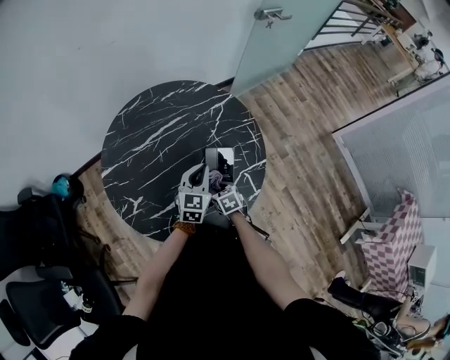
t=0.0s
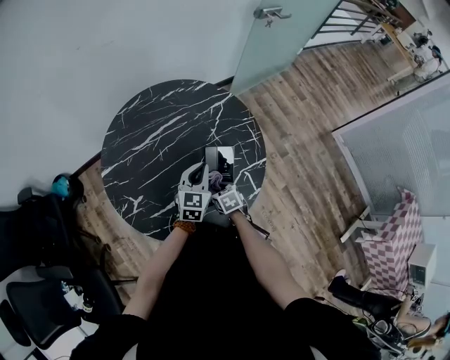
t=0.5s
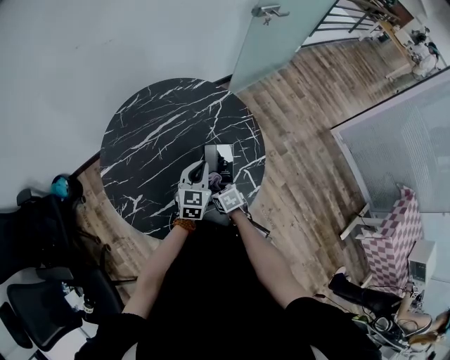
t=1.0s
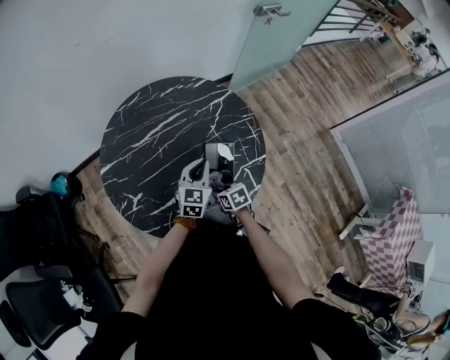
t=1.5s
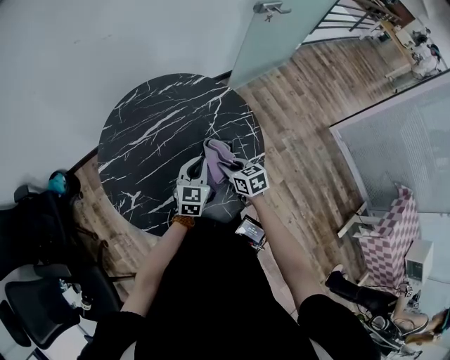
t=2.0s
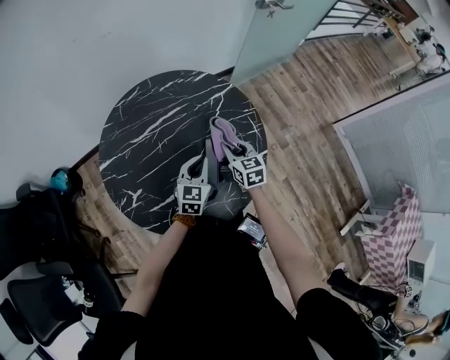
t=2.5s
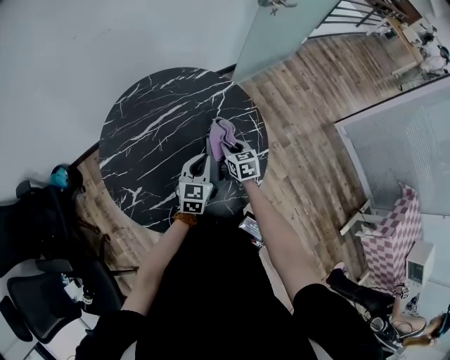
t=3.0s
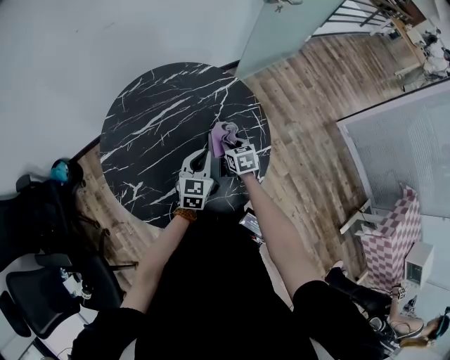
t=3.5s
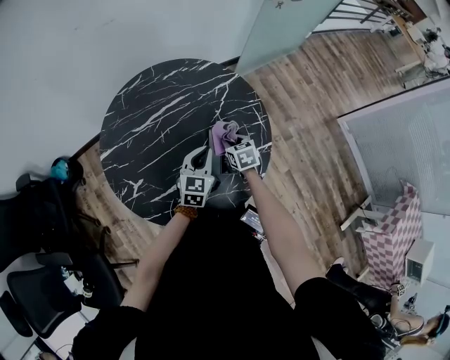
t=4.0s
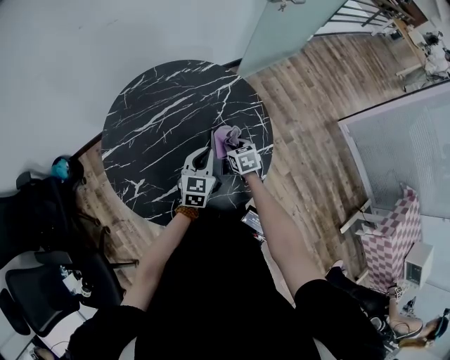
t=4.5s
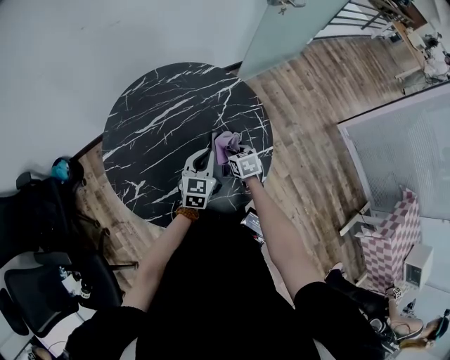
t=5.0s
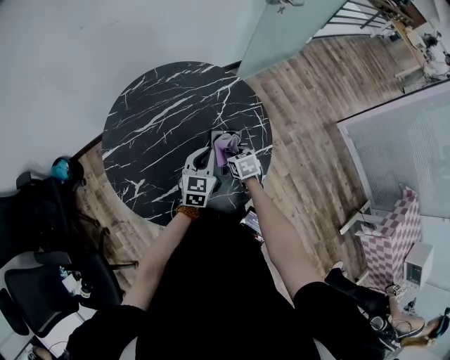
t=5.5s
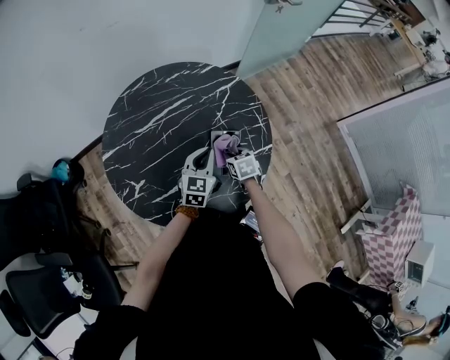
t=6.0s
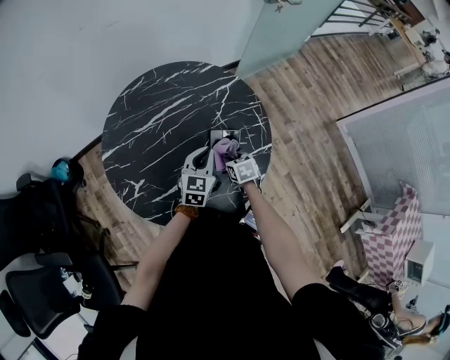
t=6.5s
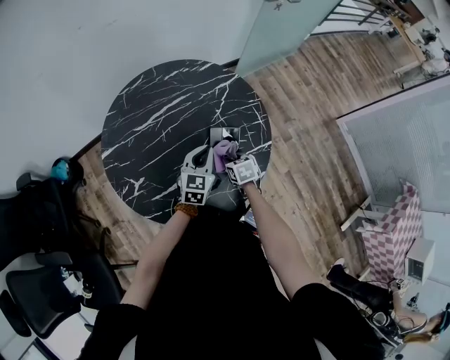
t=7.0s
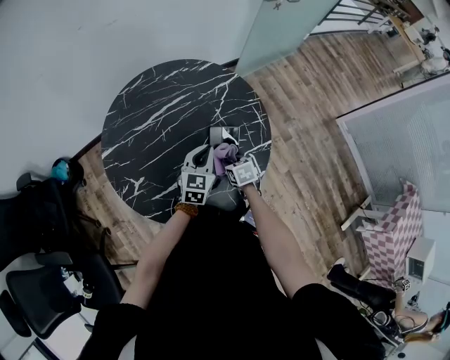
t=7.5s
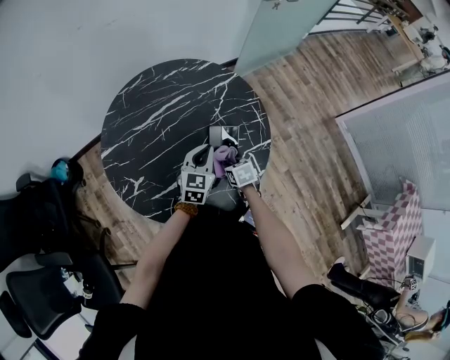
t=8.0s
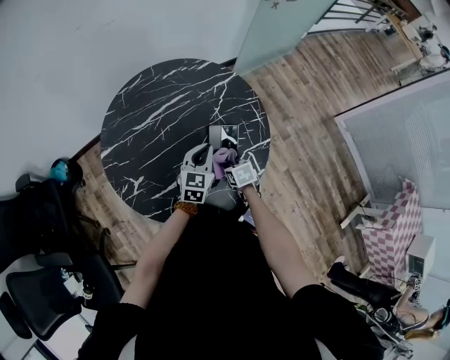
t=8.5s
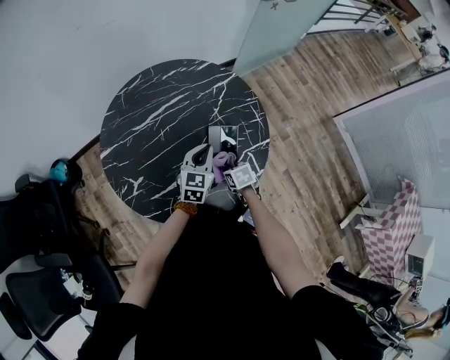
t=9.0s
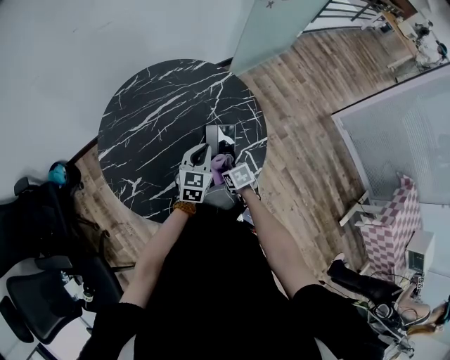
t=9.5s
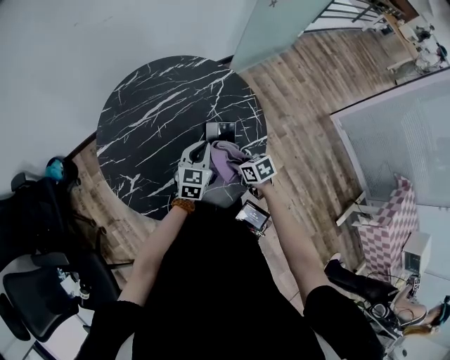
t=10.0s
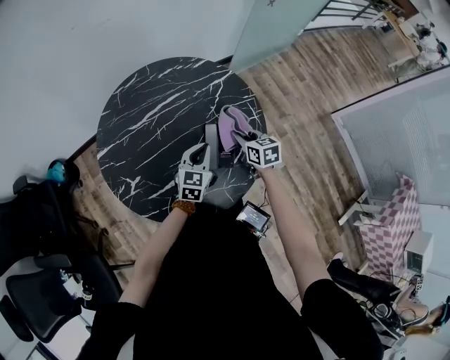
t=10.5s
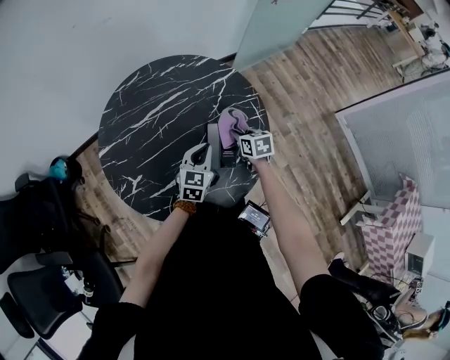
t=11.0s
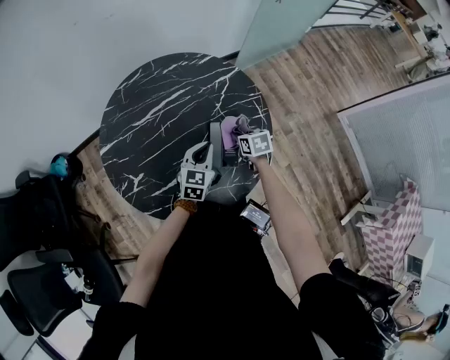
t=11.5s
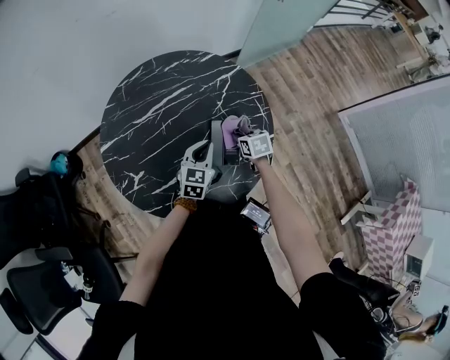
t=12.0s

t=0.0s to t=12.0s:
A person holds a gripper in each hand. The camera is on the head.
t=0.0s to t=2.0s: The right gripper is displaced upward by some 10 cm.
t=2.0s to t=4.0s: The right gripper heads downward and forward, covering about 10 cm.
t=4.0s to t=6.0s: The grippers stay close to where they were, moving slightly.
t=6.0s to t=8.0s: The right gripper travels backward by about 5 cm.
t=8.0s to t=10.0s: The right gripper moves approximately 5 cm.
t=10.0s to t=12.0s: The right gripper goes about 10 cm forward.

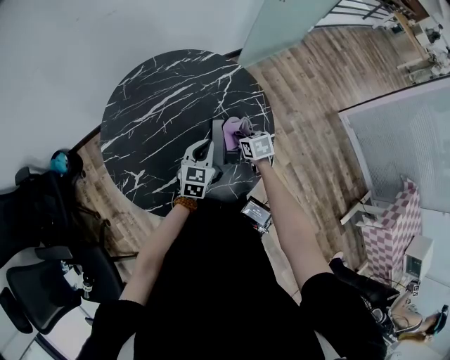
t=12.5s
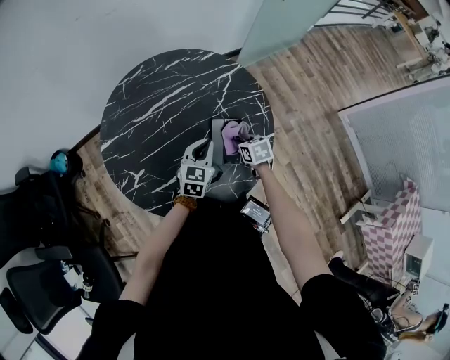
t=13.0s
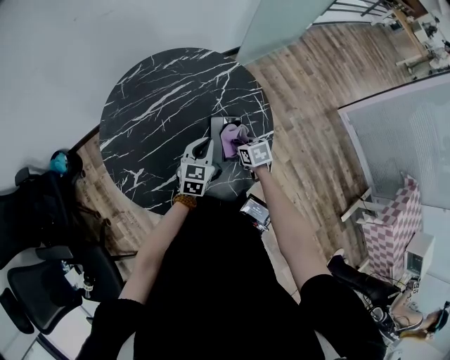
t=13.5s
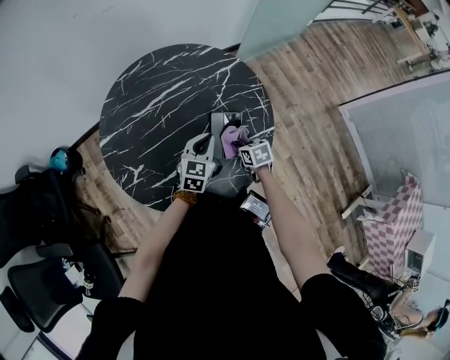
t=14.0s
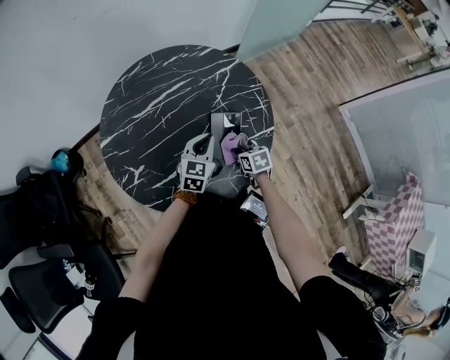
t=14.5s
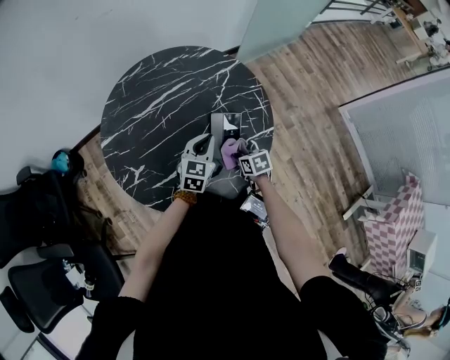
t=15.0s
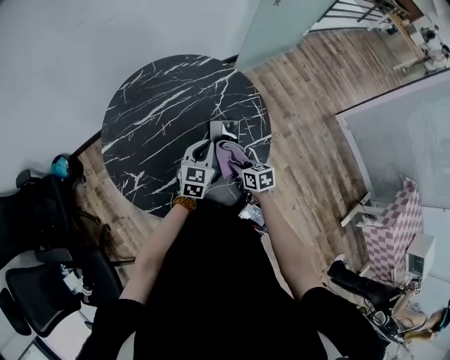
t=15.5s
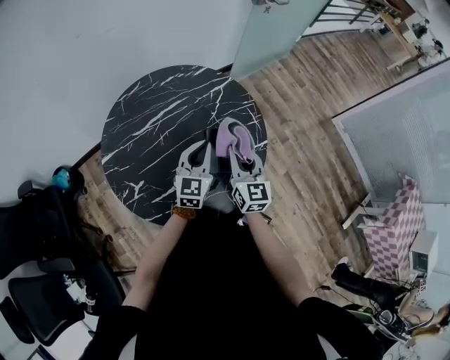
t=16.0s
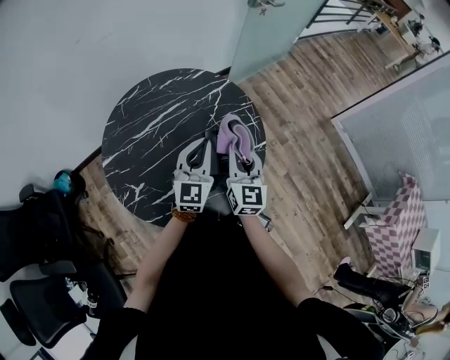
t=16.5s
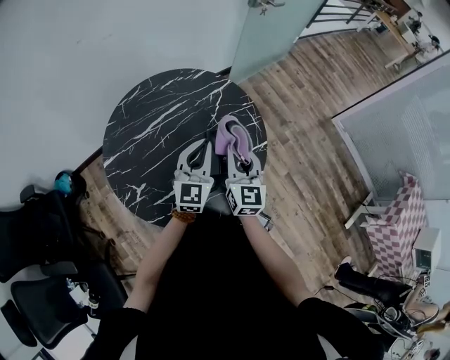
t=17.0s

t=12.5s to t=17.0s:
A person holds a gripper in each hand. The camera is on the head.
t=12.5s to t=14.5s: The right gripper travels backward by about 10 cm.
t=14.5s to t=17.0s: The right gripper heads upward, covering approximately 25 cm, and tilts its fingers some 50 degrees upward. Meanwhile the left gripper shifts roughly 15 cm upward, and turns by approximately 20 degrees.

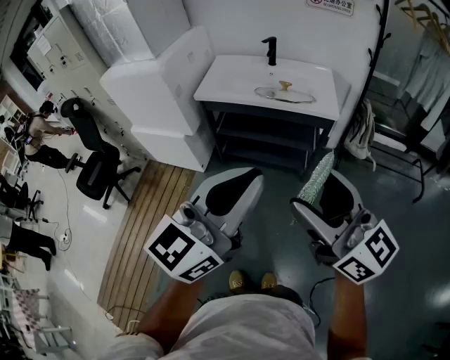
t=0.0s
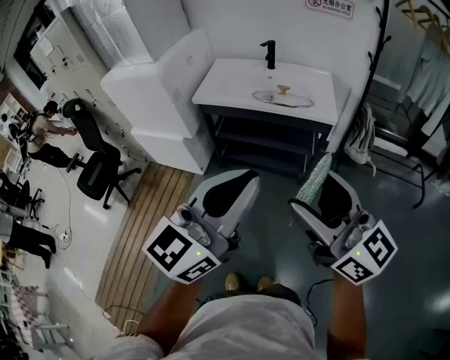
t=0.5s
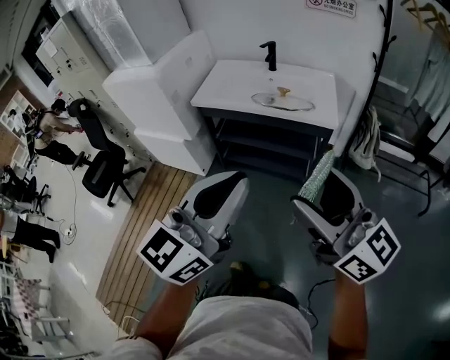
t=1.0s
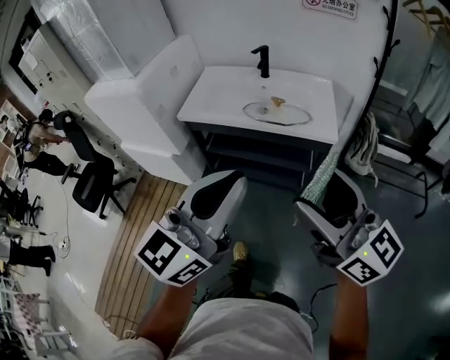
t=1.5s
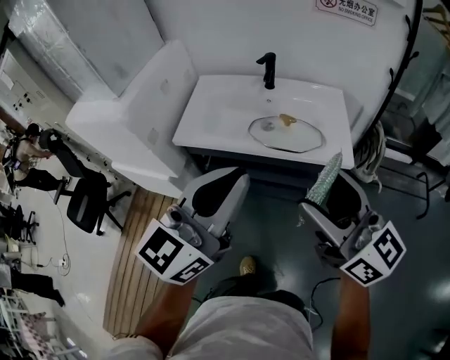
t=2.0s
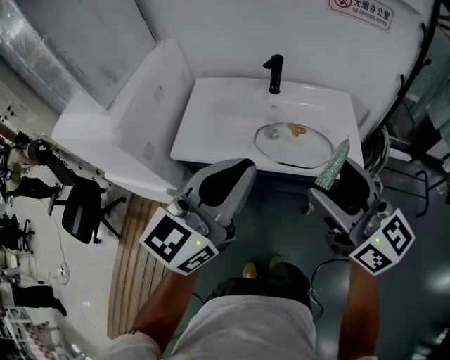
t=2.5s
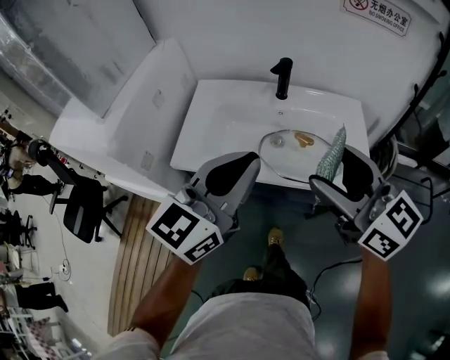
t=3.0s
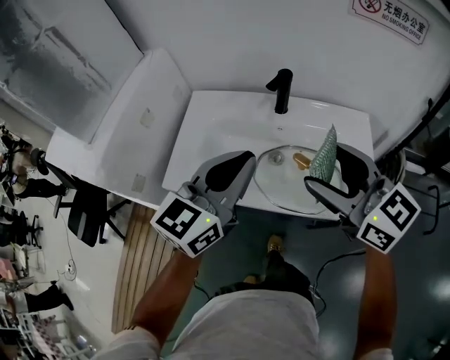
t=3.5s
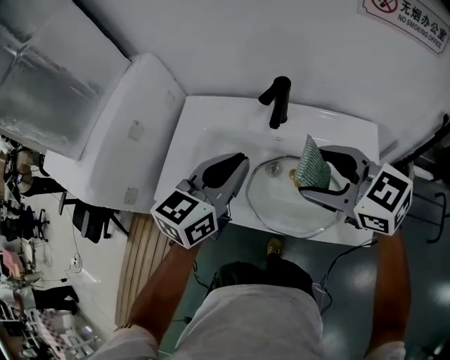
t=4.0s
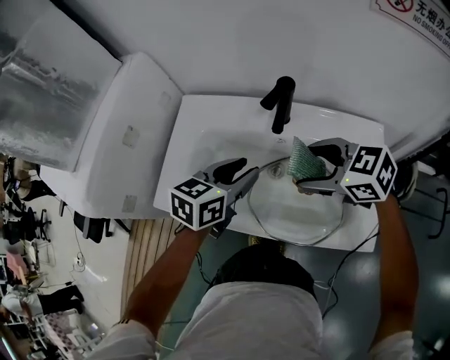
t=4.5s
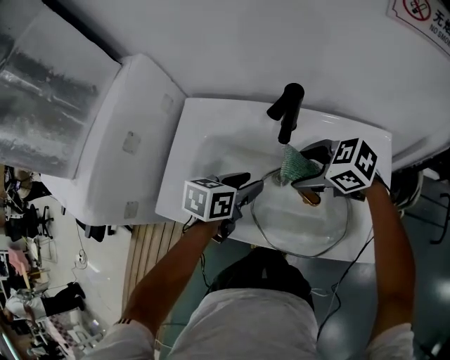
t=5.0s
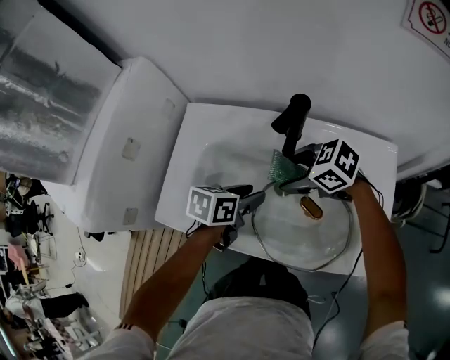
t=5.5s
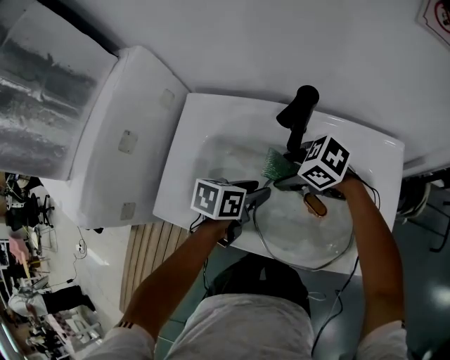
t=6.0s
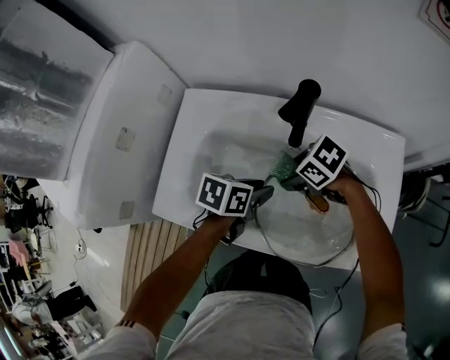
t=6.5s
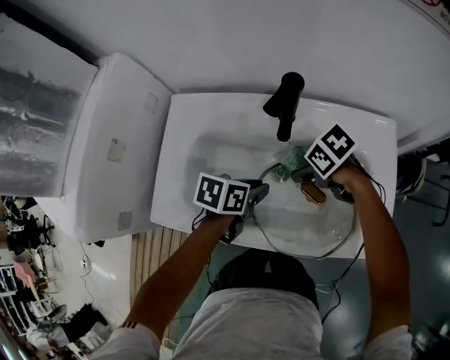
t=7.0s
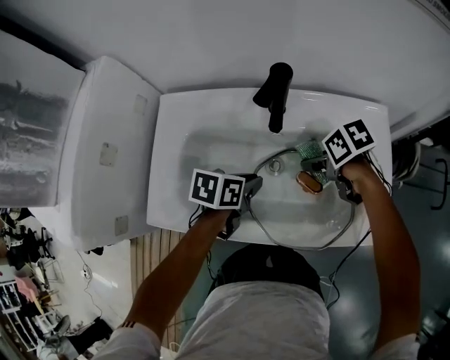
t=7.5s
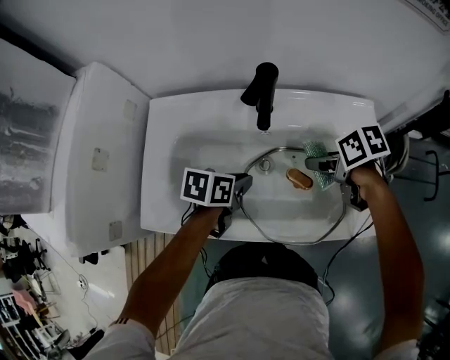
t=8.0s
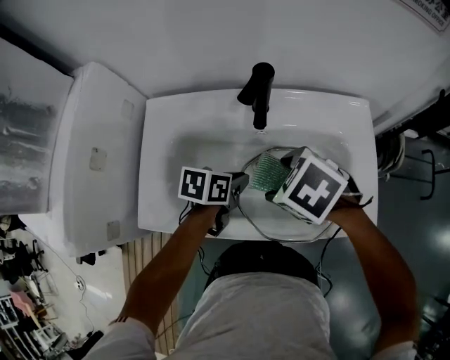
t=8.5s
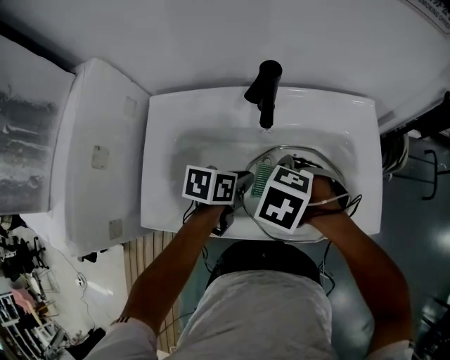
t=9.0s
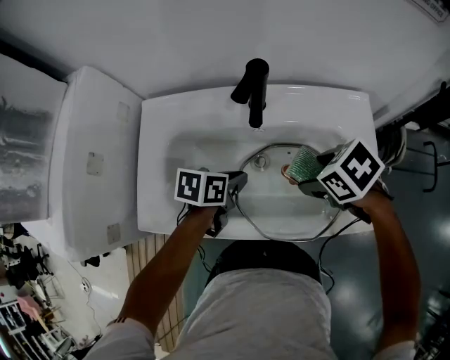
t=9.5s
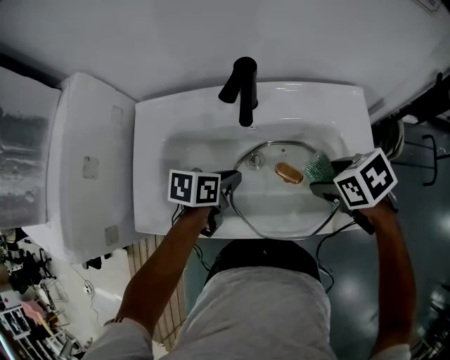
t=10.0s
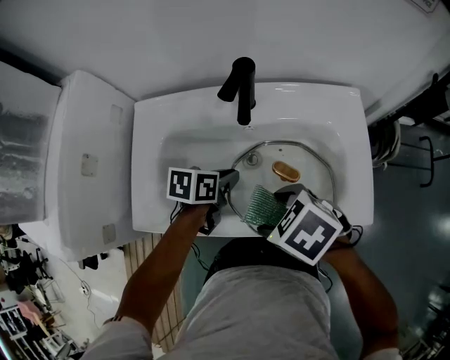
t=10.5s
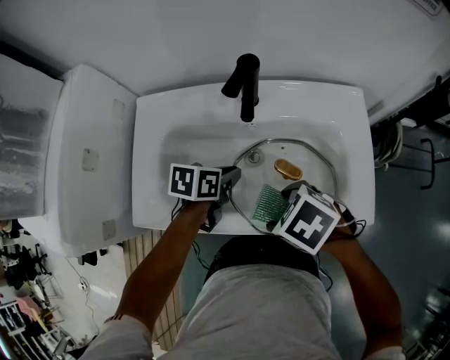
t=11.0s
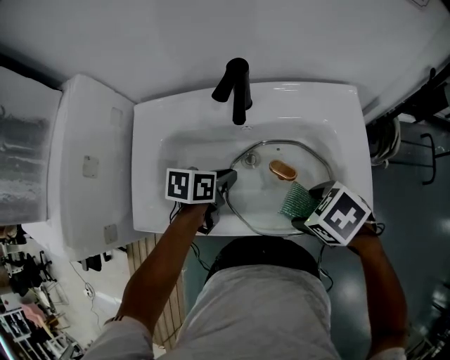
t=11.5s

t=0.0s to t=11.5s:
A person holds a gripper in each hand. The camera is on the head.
t=0.0s to t=2.0s: The grippers both shift forward by about 30 cm.
t=2.0s to t=4.0s: The grippers both shift forward by approximately 35 cm. The right gripper tilts its fingers roughly 30 degrees downward. The left gripper changes its angle by some 20 degrees.
t=4.0s to t=6.0s: Both grippers travel together downward, some 20 cm. The left gripper angles its fingers downward, by roughly 30 degrees, and opens up. Meanwhile the right gripper swivels about 30 degrees.
t=6.0s to t=7.5s: The right gripper ends up roughly 15 cm from where it was, and twists about 50 degrees clockwise, seen from behind, while the left gripper closes up.
t=7.5s to t=9.5s: The right gripper goes about 5 cm upward, and turns by about 20 degrees.
t=9.5s to t=11.5s: The right gripper shifts by about 10 cm.
